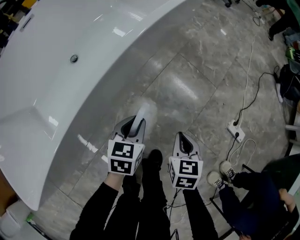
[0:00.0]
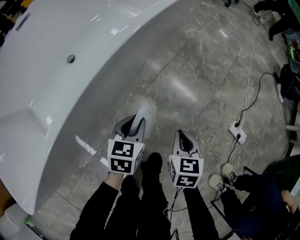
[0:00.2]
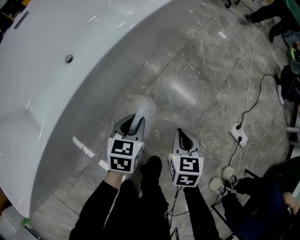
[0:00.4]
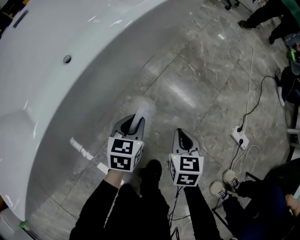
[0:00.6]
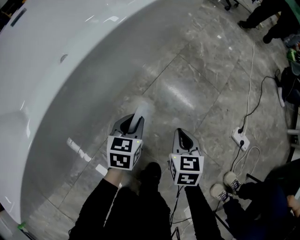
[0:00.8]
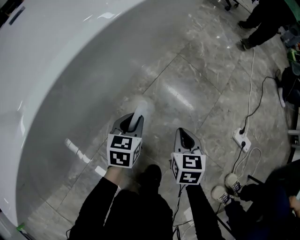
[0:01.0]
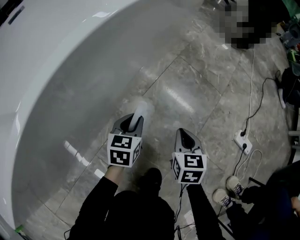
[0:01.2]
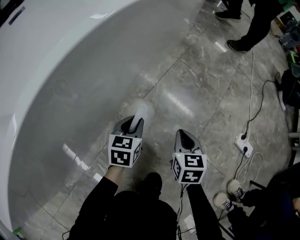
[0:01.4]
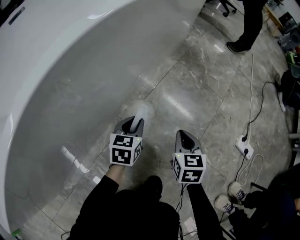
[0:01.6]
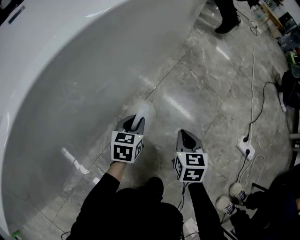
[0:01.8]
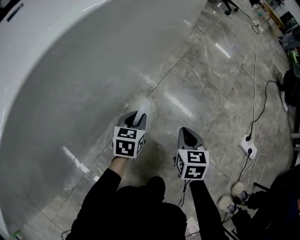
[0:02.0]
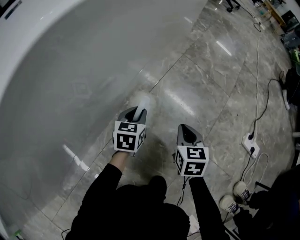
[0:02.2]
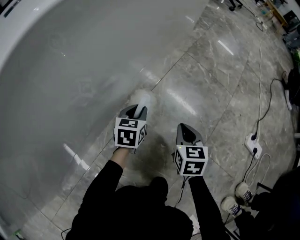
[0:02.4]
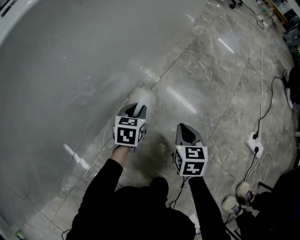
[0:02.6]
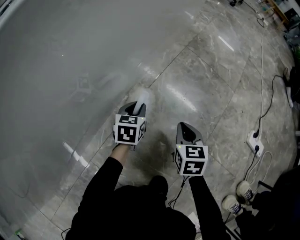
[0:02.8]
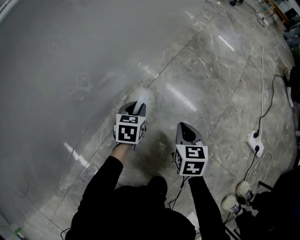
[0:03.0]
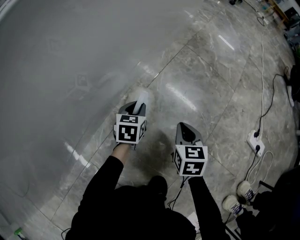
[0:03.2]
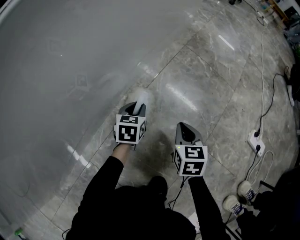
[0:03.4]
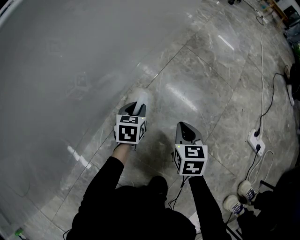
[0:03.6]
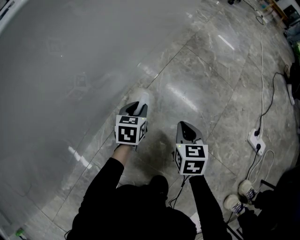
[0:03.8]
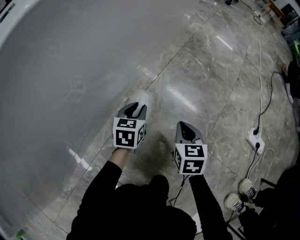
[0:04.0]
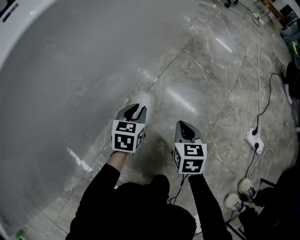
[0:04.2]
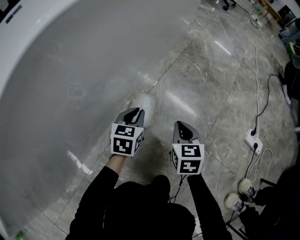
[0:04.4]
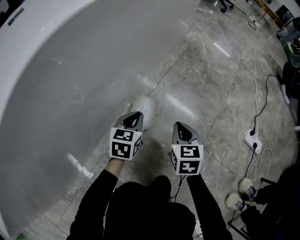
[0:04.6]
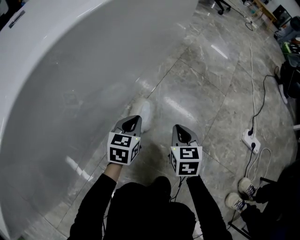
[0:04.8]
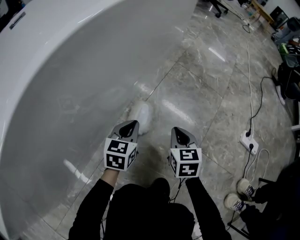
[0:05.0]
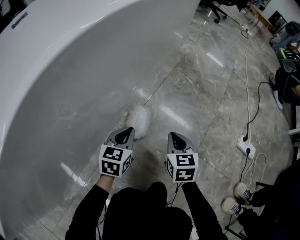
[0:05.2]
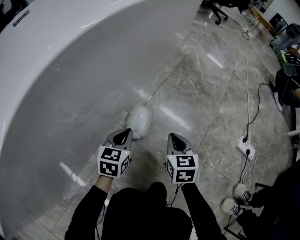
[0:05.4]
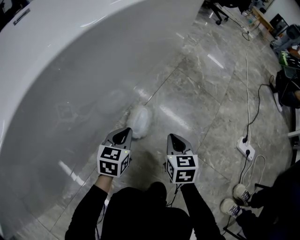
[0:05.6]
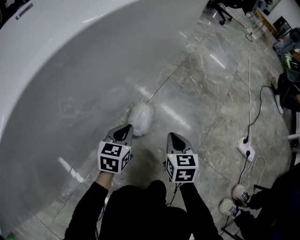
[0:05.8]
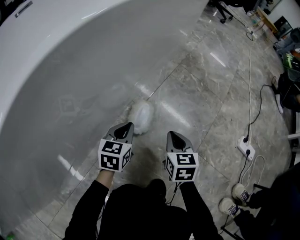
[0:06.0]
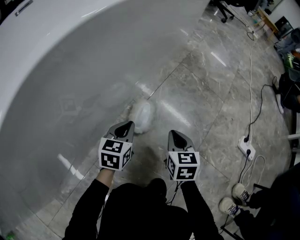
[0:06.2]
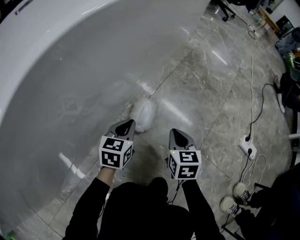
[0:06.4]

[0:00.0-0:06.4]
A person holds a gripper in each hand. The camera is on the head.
0.0 to 1.6 s: Both grippers travel together downward, about 20 cm.
1.6 to 3.2 s: Both grippers move downward, about 10 cm.
3.2 to 4.8 s: The right gripper heads upward, covering roughly 5 cm. The left gripper shifts some 10 cm upward, and closes up.
4.8 to 6.4 s: There are only small adjustments of the grippers.

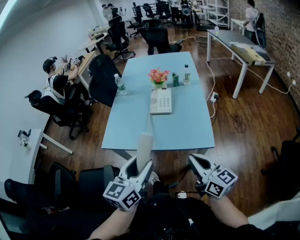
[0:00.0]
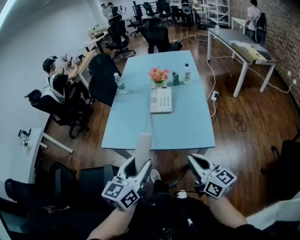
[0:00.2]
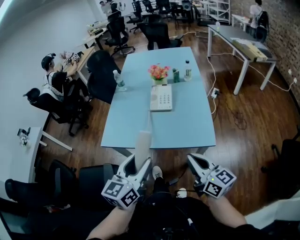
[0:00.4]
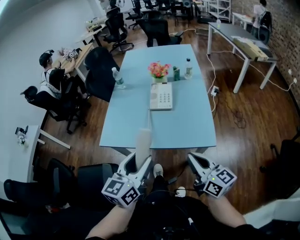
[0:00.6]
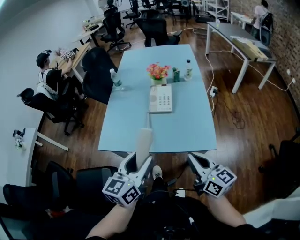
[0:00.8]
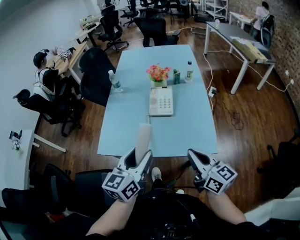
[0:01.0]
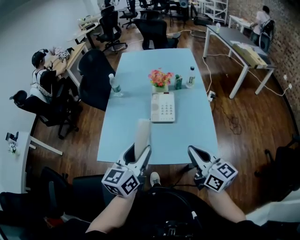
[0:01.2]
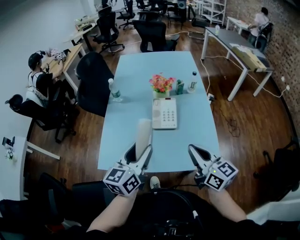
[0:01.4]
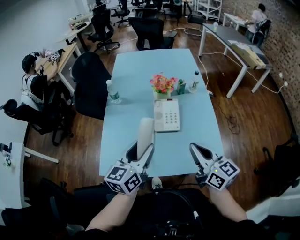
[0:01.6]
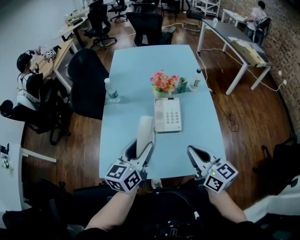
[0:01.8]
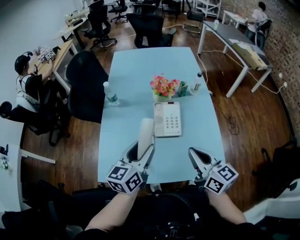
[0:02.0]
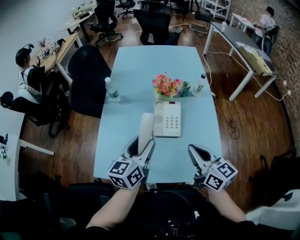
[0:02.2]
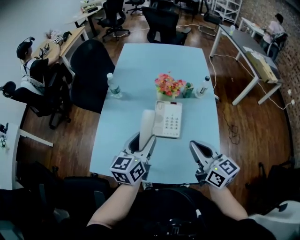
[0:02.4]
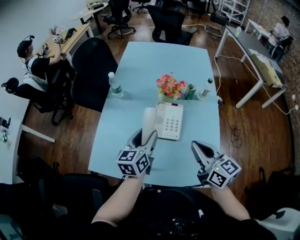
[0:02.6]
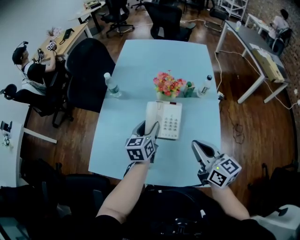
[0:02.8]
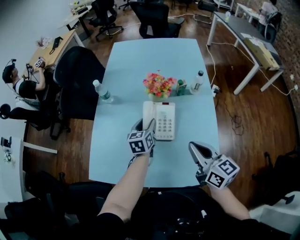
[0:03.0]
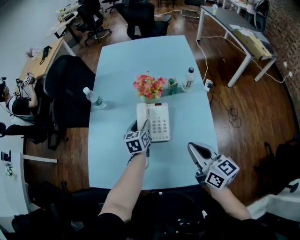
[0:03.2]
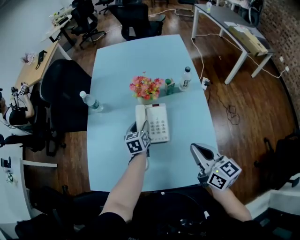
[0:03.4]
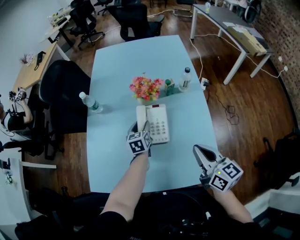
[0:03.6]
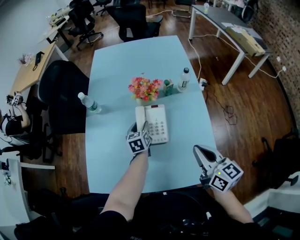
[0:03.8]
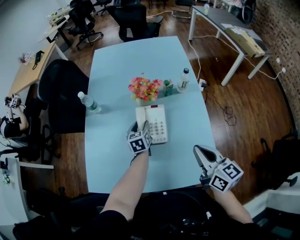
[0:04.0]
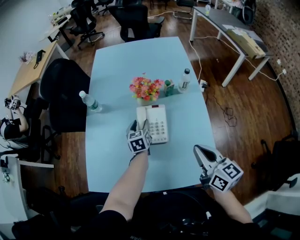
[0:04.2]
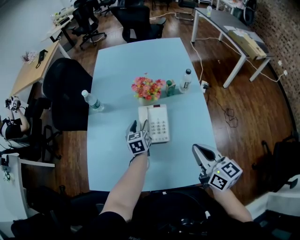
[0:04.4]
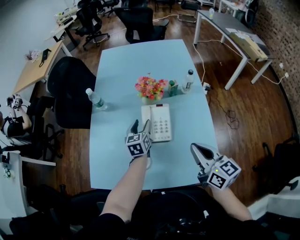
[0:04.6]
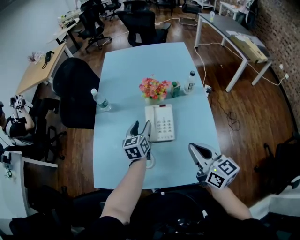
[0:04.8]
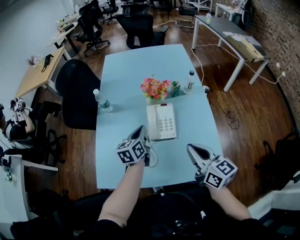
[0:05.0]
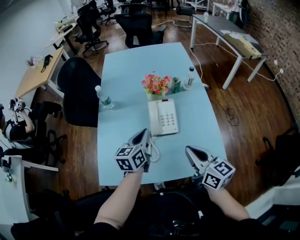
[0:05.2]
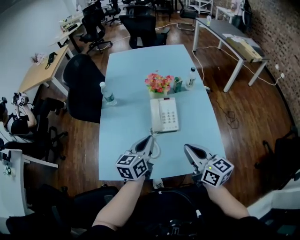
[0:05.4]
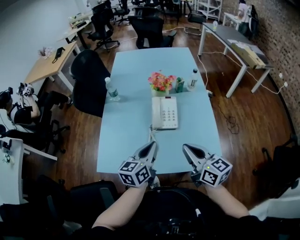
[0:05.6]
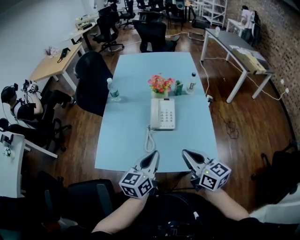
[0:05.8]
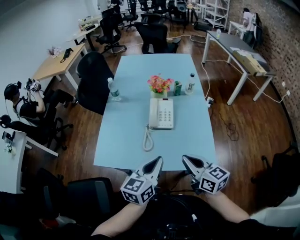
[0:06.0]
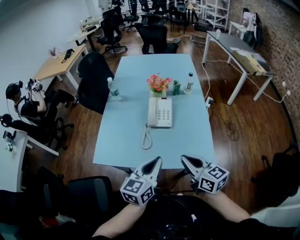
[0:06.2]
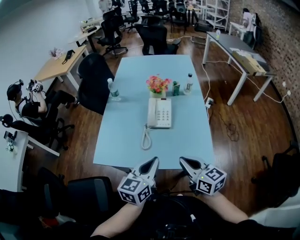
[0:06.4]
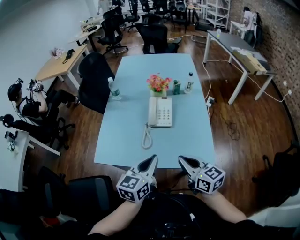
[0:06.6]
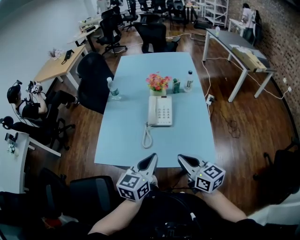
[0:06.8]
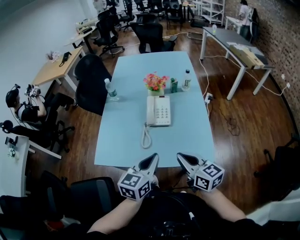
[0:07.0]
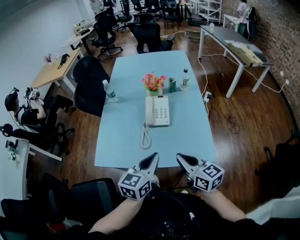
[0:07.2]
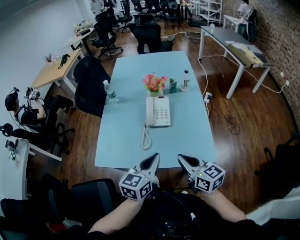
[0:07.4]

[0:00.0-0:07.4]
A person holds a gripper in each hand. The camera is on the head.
0.0 to 1.4 s: Both grippers move forward, approximately 20 cm.
1.4 to 3.0 s: The right gripper moves forward and to the right, roughly 15 cm. Meanwhile the left gripper is displaced forward and downward by about 30 cm, and rotates roughly 20 degrees.
4.4 to 6.0 s: The left gripper is displaced backward and upward by some 40 cm, changes its angle by approximately 30 degrees, and closes. Meanwhile the right gripper goes approximately 20 cm backward and to the left.
6.0 to 7.4 s: There are only small adjustments of the grippers.

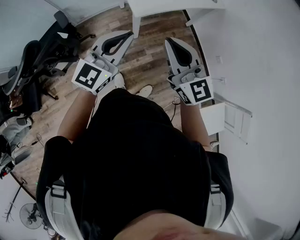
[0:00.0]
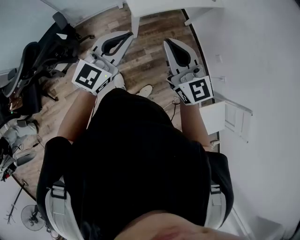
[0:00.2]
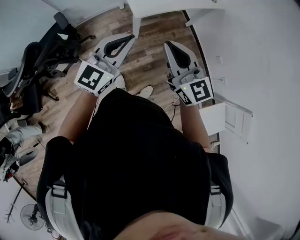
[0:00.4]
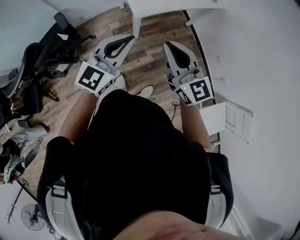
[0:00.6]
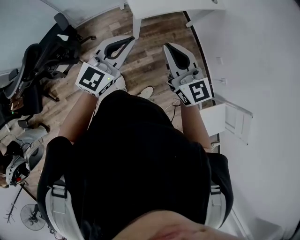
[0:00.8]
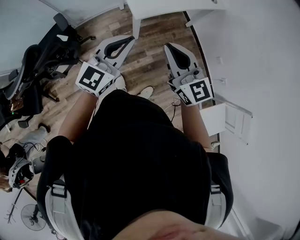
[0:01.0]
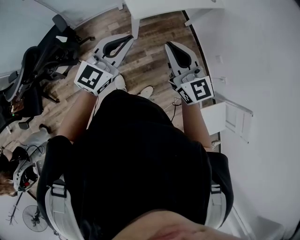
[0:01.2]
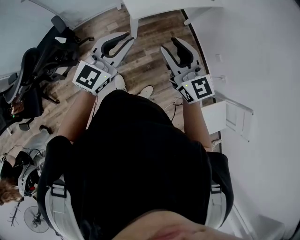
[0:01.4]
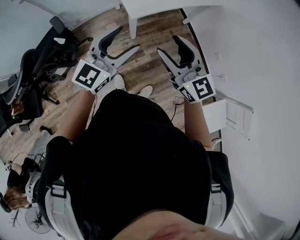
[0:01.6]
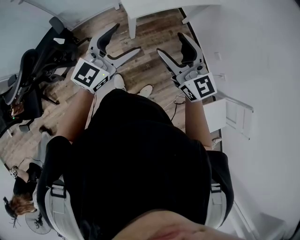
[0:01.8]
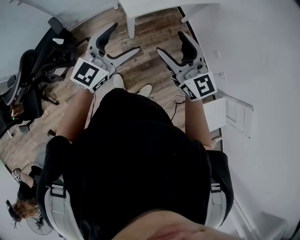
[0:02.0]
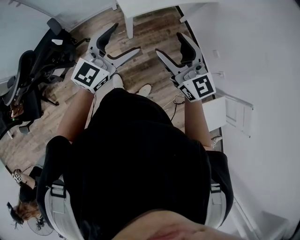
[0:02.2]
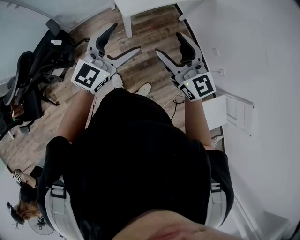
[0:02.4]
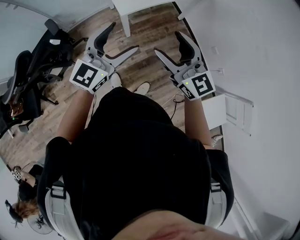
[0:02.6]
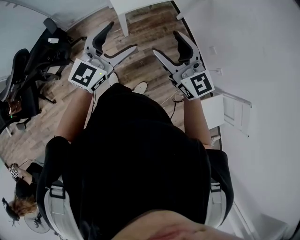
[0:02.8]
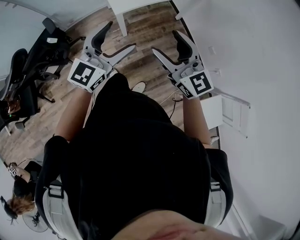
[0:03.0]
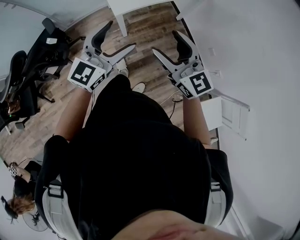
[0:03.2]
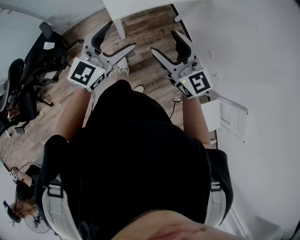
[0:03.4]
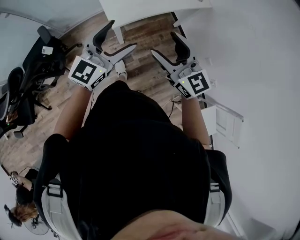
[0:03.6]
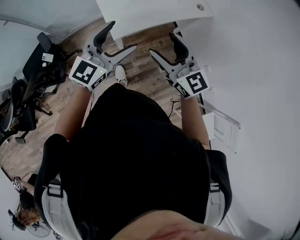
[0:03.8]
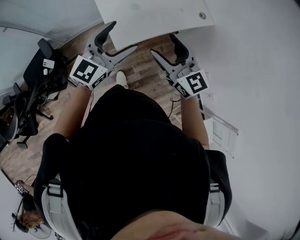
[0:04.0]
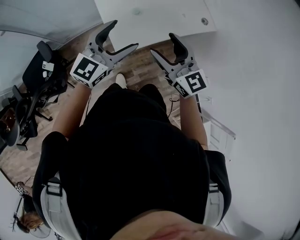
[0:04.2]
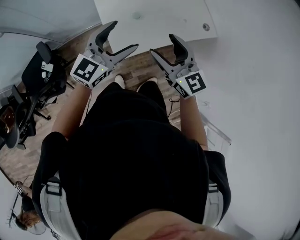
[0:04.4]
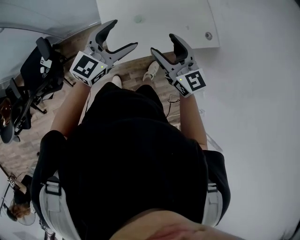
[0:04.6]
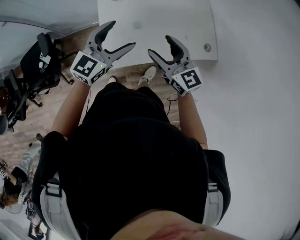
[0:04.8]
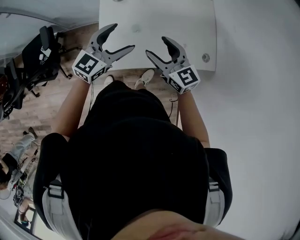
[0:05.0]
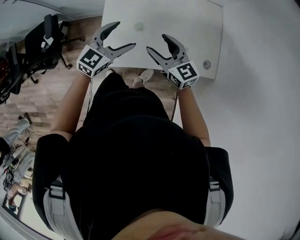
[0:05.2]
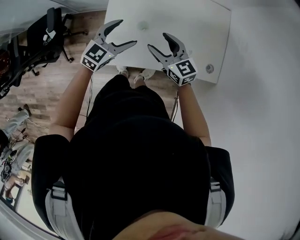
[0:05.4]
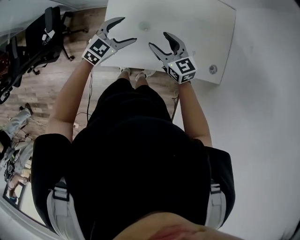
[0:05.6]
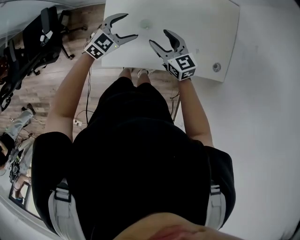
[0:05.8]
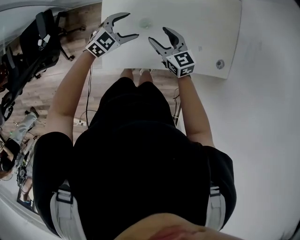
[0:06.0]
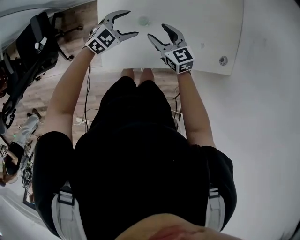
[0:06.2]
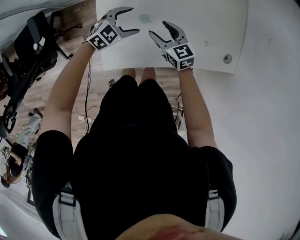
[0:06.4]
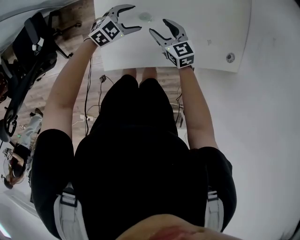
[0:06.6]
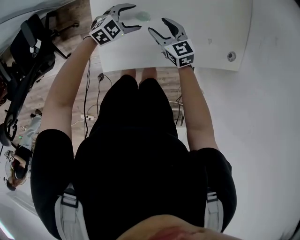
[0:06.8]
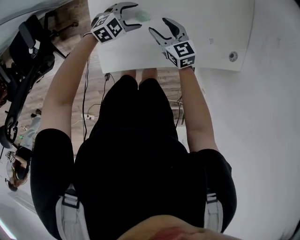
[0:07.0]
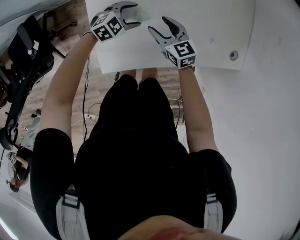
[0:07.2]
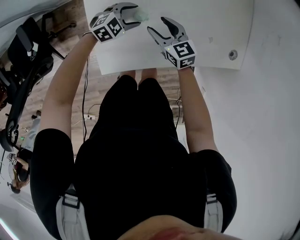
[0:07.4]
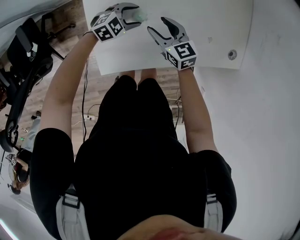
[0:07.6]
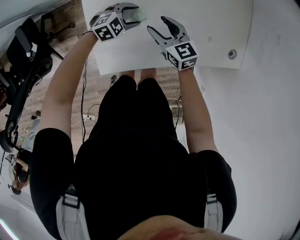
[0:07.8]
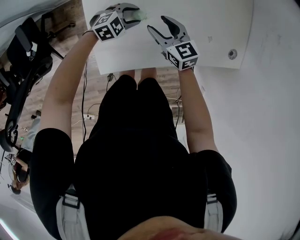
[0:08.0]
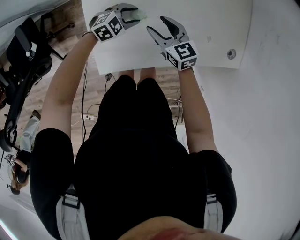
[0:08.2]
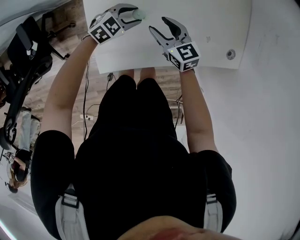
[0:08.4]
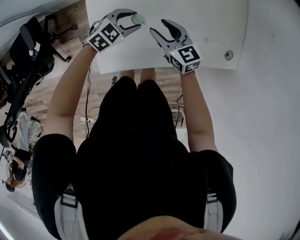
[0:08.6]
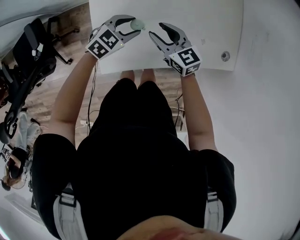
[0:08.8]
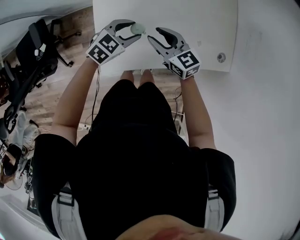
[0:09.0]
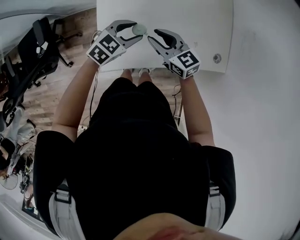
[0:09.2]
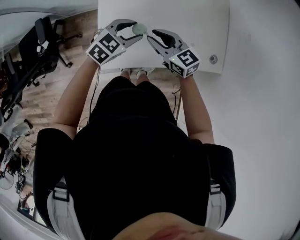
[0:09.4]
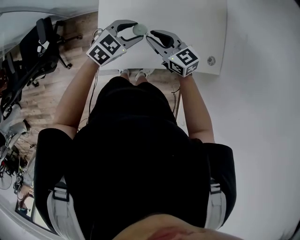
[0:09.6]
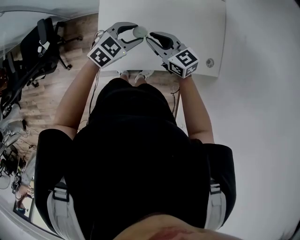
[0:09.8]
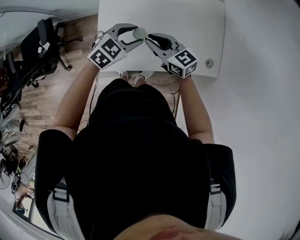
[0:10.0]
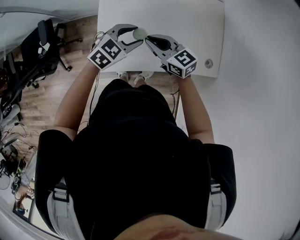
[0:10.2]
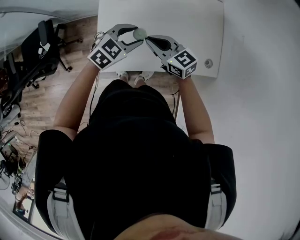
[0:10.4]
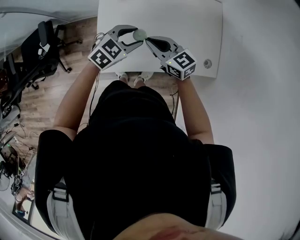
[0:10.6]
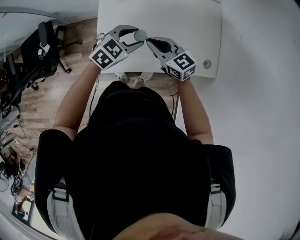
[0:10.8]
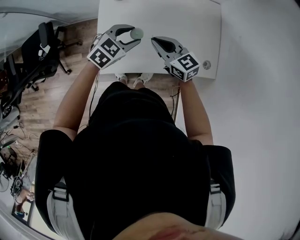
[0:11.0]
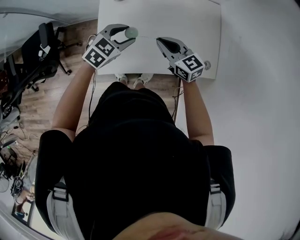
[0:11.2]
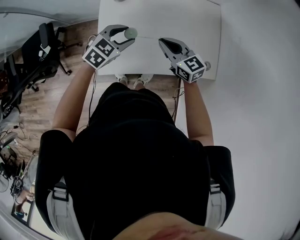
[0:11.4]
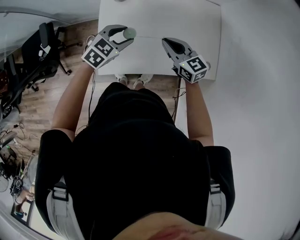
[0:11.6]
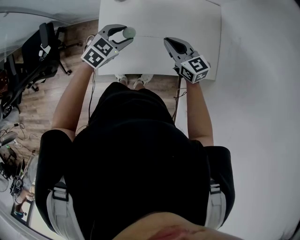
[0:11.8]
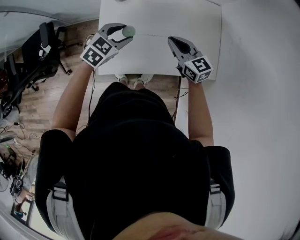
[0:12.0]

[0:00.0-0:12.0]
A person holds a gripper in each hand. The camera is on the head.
0.0 to 1.6 s: The right gripper opens; the left gripper opens up.
1.6 to 3.0 s: Both grippers travel together to the right, roughly 10 cm.
3.0 to 4.4 s: Both grippers travel together forward, roughly 35 cm.
4.4 to 6.0 s: The two grippers go approximately 35 cm downward and forward. The right gripper changes its angle by approximately 30 degrees, while the left gripper points its fingers some 30 degrees further downward.
6.0 to 7.6 s: The left gripper is displaced downward by approximately 15 cm, and turns by about 20 degrees. The right gripper heads downward, covering about 10 cm.
7.6 to 9.0 s: The grippers both shift upward by about 15 cm.
9.0 to 10.4 s: The grippers both shift upward by roughly 10 cm. The right gripper closes.
10.4 to 12.0 s: The left gripper changes place by roughly 5 cm. The right gripper heads to the right, covering approximately 10 cm.
